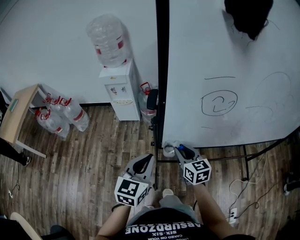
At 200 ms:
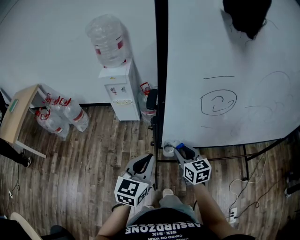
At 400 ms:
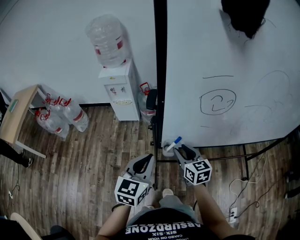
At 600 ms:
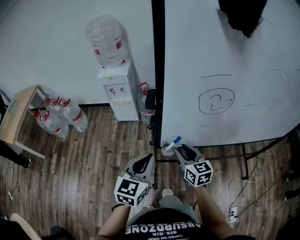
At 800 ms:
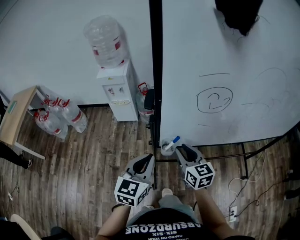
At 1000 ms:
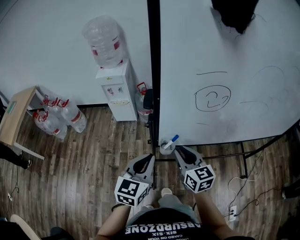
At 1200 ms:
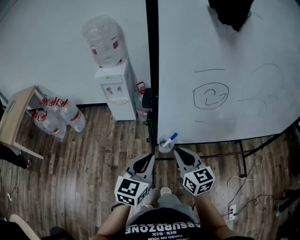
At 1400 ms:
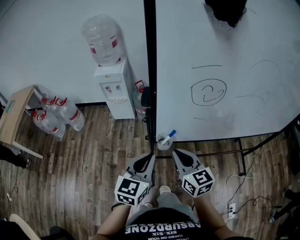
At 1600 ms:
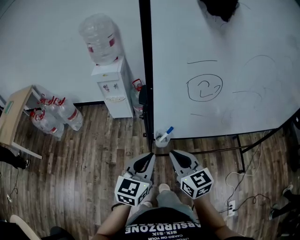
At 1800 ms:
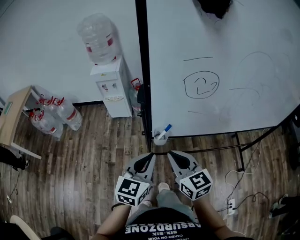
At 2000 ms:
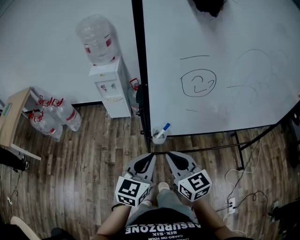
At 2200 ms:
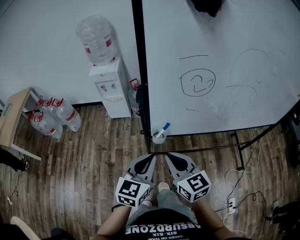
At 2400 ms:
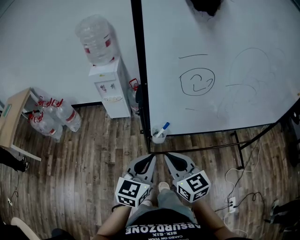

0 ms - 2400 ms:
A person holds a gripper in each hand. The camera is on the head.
0 ms - 1200 ms: The right gripper is displaced upward and backward by approximately 10 cm.
1200 ms - 2400 ms: Both grippers travel together backward, approximately 5 cm.

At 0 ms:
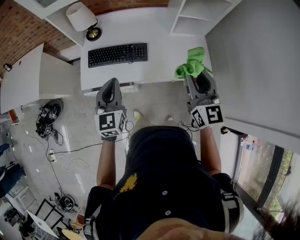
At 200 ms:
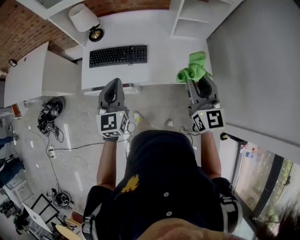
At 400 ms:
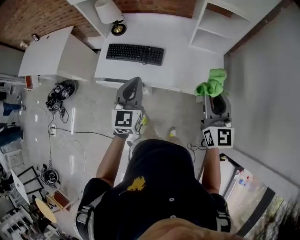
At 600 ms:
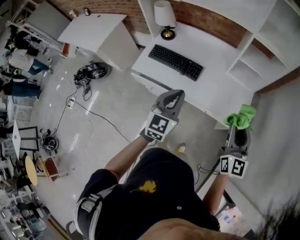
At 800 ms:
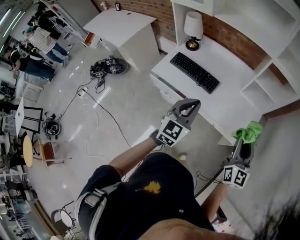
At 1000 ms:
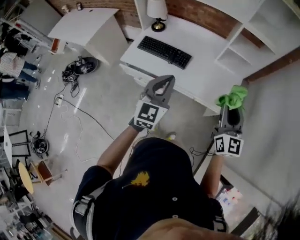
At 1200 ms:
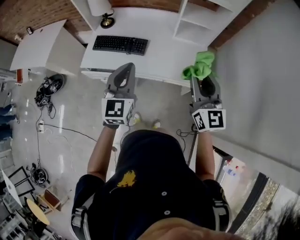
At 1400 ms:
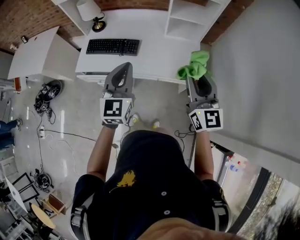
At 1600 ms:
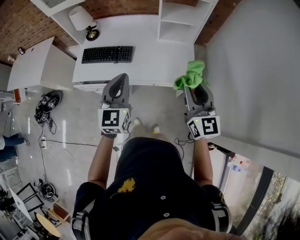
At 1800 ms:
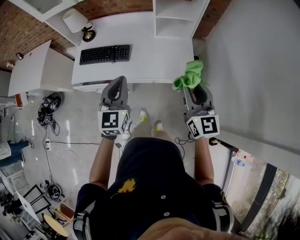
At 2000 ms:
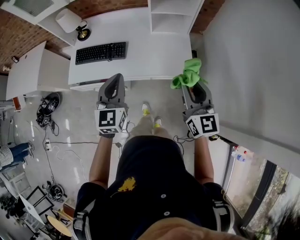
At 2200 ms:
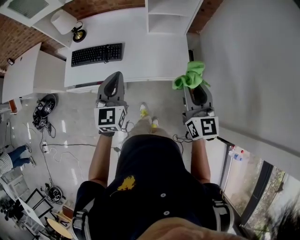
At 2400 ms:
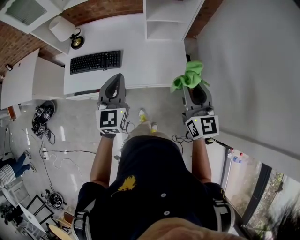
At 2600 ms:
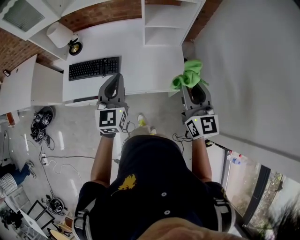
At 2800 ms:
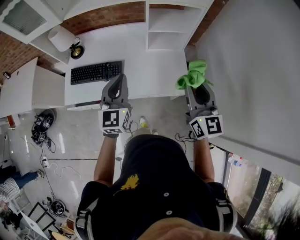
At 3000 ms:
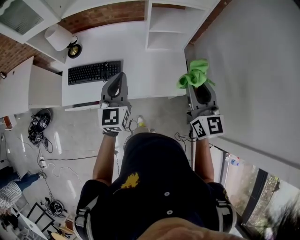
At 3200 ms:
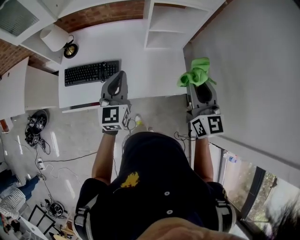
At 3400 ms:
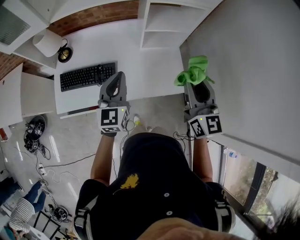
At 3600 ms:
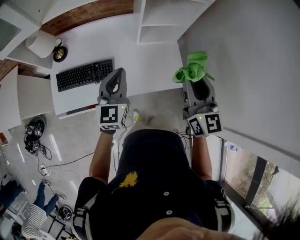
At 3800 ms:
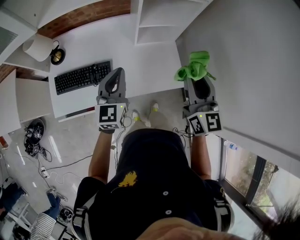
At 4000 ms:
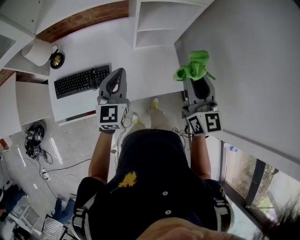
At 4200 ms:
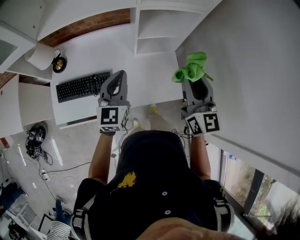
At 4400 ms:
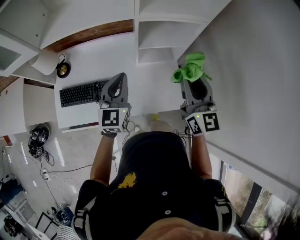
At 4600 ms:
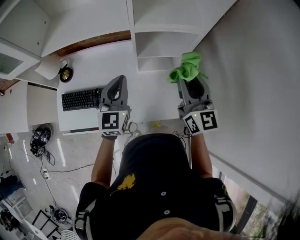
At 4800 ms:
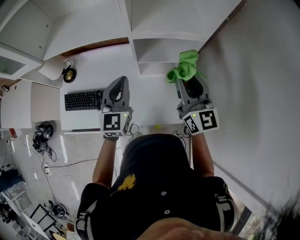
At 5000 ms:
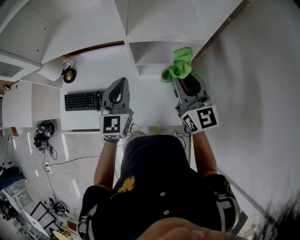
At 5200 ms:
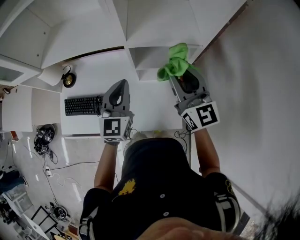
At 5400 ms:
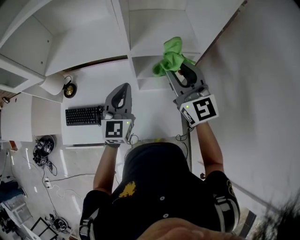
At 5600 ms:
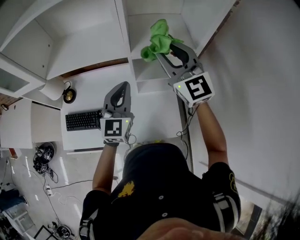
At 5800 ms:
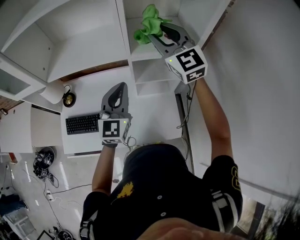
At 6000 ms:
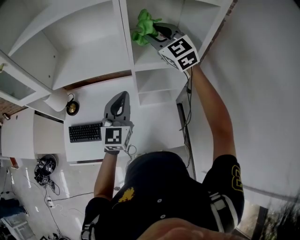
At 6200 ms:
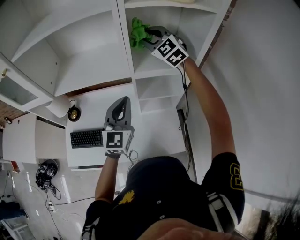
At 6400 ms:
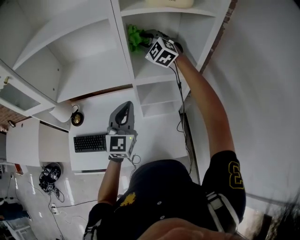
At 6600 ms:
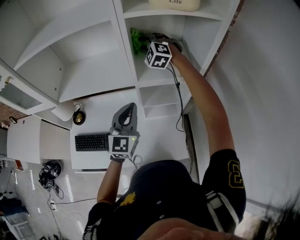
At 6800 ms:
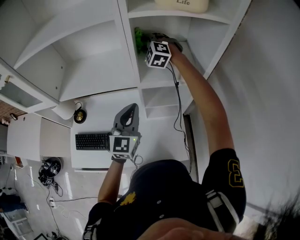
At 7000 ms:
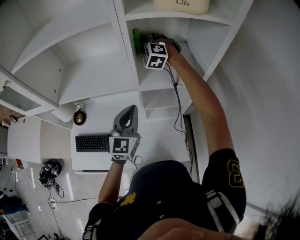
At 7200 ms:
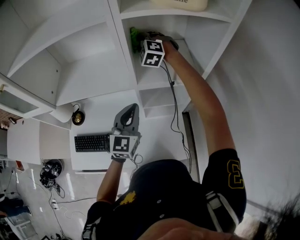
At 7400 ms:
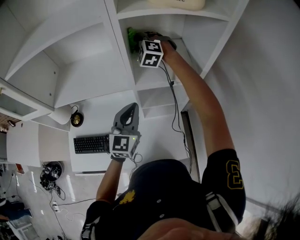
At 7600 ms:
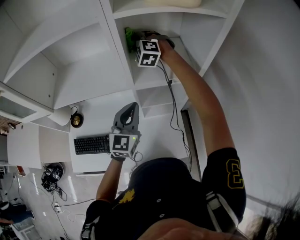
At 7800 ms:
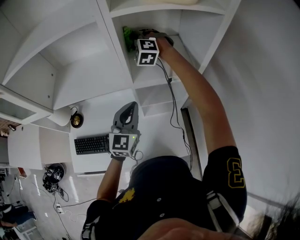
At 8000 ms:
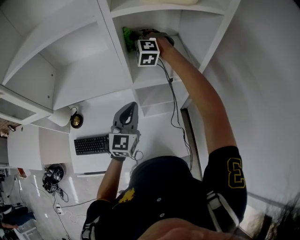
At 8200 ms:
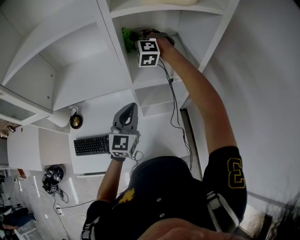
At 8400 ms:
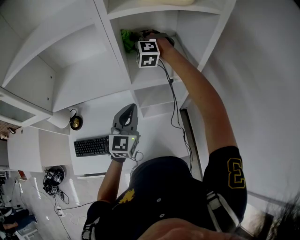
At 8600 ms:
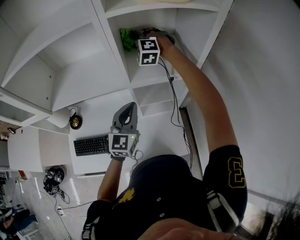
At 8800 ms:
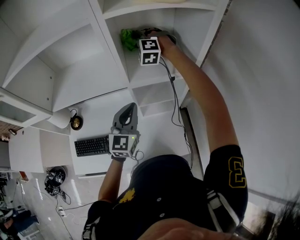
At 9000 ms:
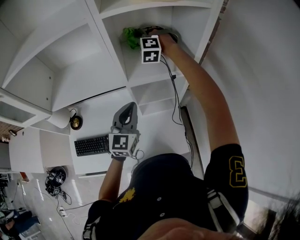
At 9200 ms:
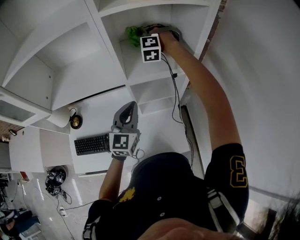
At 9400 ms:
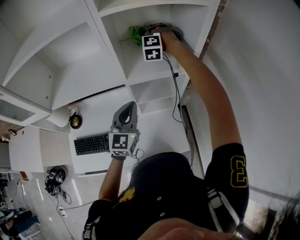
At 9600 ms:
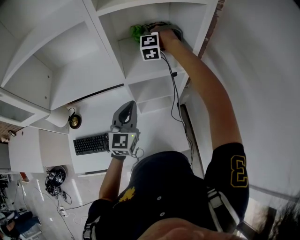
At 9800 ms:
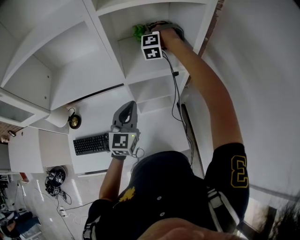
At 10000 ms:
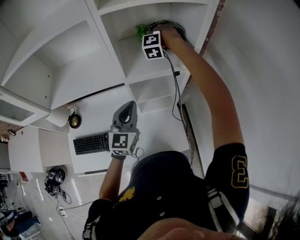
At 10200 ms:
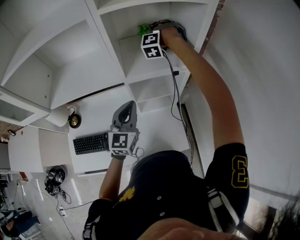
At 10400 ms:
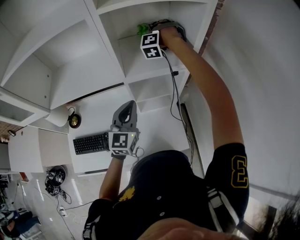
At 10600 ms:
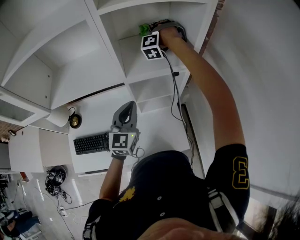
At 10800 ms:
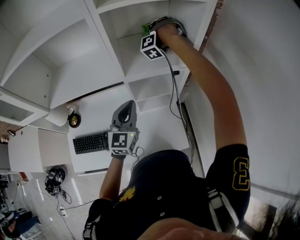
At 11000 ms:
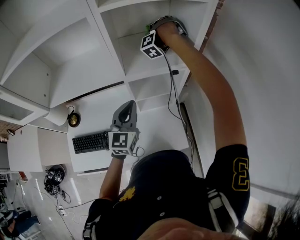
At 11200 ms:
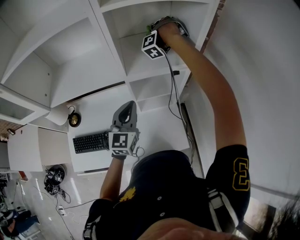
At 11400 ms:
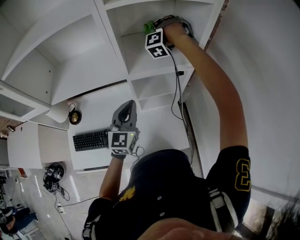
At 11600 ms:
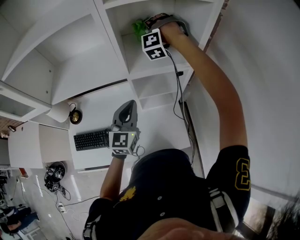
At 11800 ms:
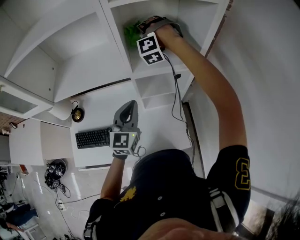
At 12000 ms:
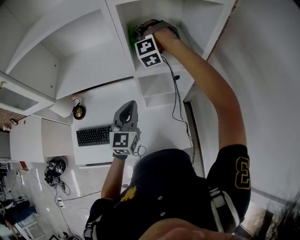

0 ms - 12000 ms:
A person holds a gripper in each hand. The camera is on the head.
0 ms - 1600 ms: Both grippers move to the right and backward, some 25 cm.
1600 ms - 3000 ms: Both grippers move forward, some 15 cm.
3000 ms - 4400 ms: Both grippers travel together forward, some 15 cm.
4400 ms - 6000 ms: The right gripper goes roughly 30 cm forward and upward, and changes its angle by roughly 40 degrees, while the left gripper moves upward and forward, approximately 10 cm.
6000 ms - 7600 ms: The left gripper travels forward by approximately 5 cm, while the right gripper moves forward and downward, about 20 cm, and changes its angle by about 40 degrees.
7600 ms - 9000 ms: The right gripper goes roughly 5 cm to the right.
9000 ms - 10400 ms: The right gripper moves to the right, roughly 10 cm, and turns by some 30 degrees.
10400 ms - 12000 ms: The right gripper moves backward and to the left, about 15 cm, and rotates approximately 20 degrees.

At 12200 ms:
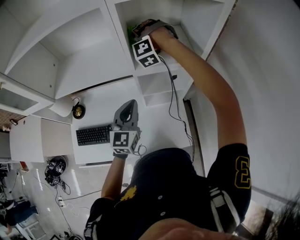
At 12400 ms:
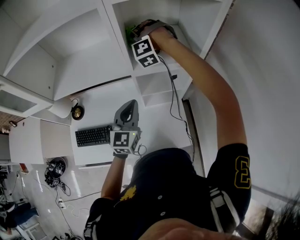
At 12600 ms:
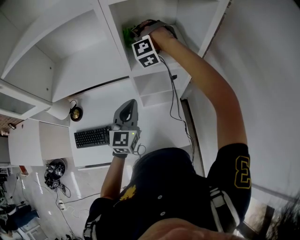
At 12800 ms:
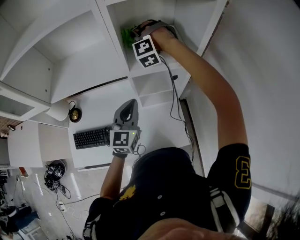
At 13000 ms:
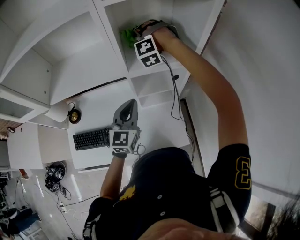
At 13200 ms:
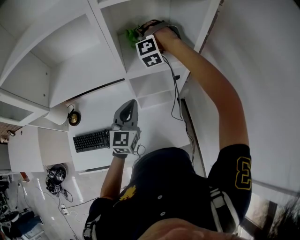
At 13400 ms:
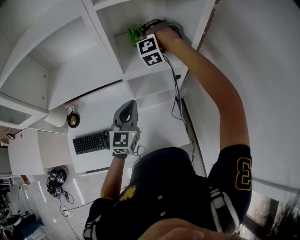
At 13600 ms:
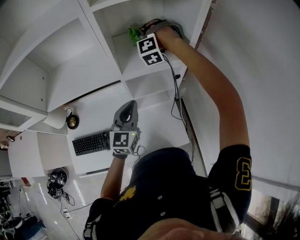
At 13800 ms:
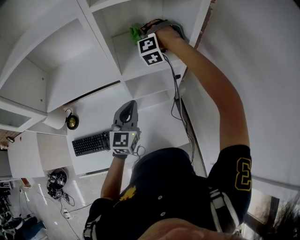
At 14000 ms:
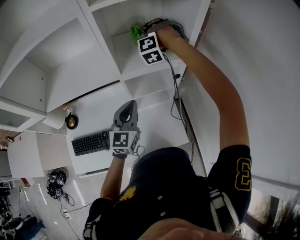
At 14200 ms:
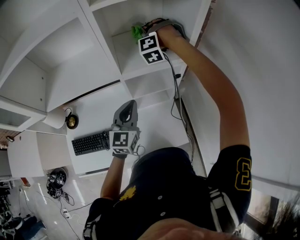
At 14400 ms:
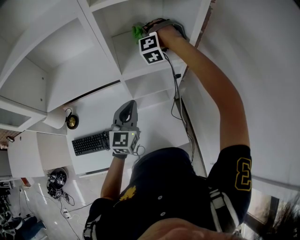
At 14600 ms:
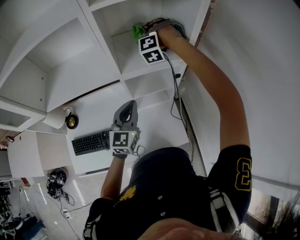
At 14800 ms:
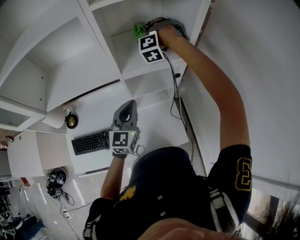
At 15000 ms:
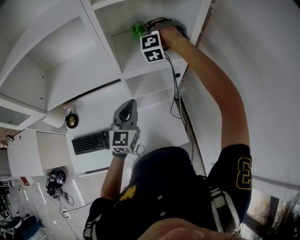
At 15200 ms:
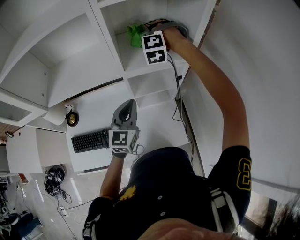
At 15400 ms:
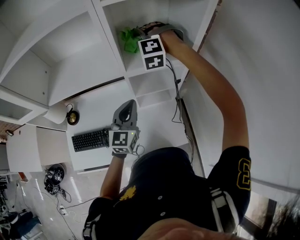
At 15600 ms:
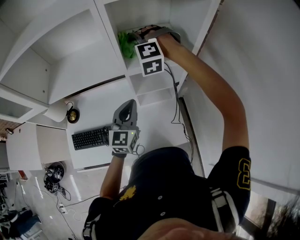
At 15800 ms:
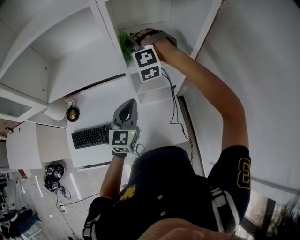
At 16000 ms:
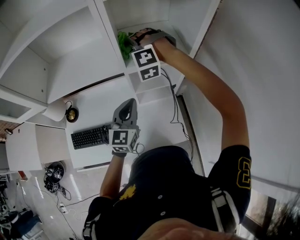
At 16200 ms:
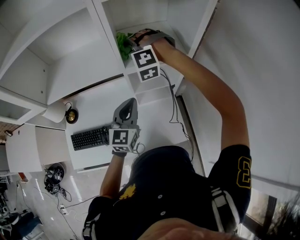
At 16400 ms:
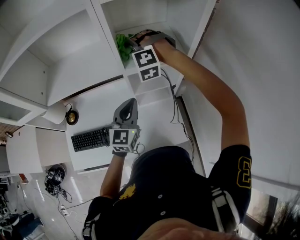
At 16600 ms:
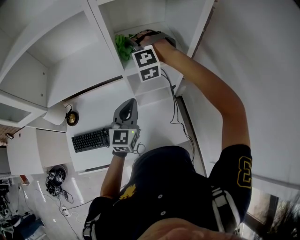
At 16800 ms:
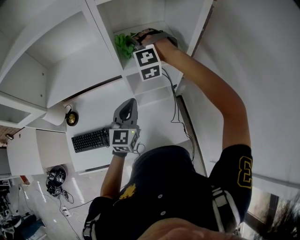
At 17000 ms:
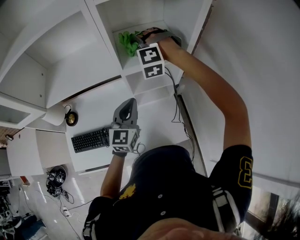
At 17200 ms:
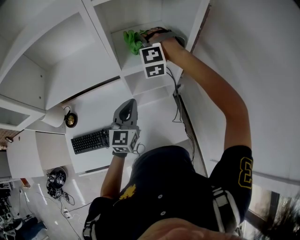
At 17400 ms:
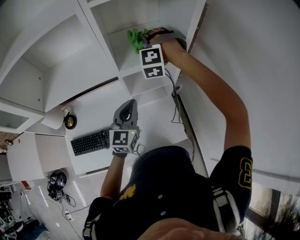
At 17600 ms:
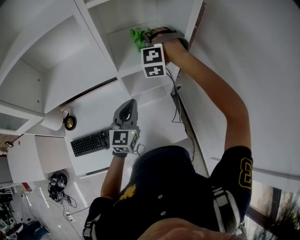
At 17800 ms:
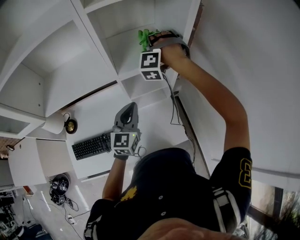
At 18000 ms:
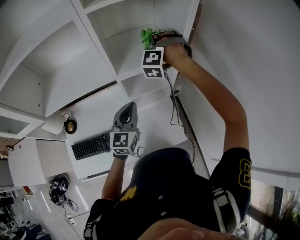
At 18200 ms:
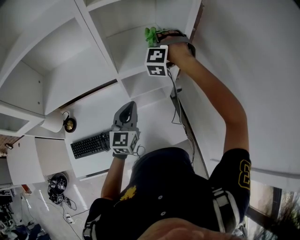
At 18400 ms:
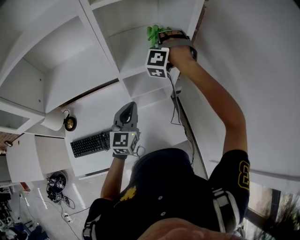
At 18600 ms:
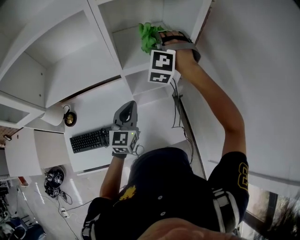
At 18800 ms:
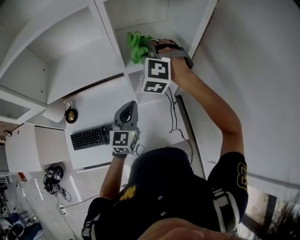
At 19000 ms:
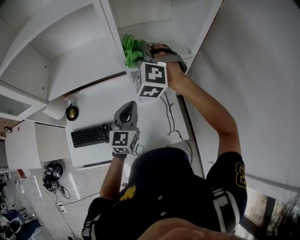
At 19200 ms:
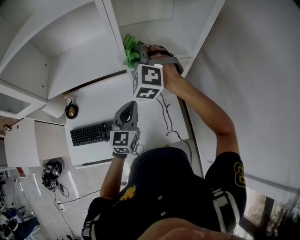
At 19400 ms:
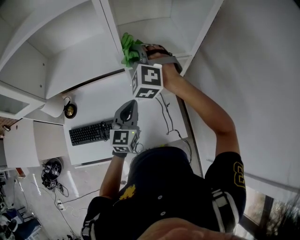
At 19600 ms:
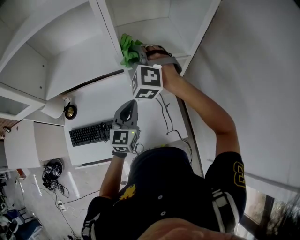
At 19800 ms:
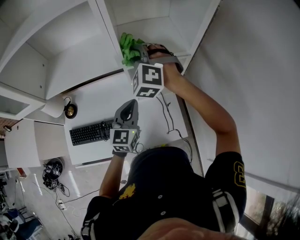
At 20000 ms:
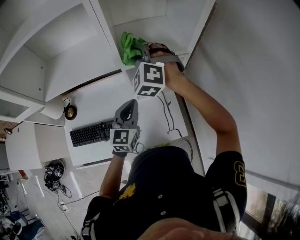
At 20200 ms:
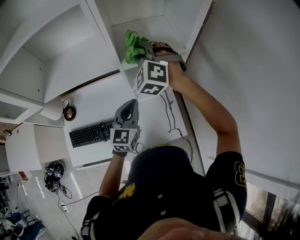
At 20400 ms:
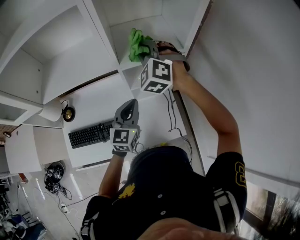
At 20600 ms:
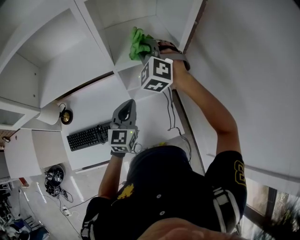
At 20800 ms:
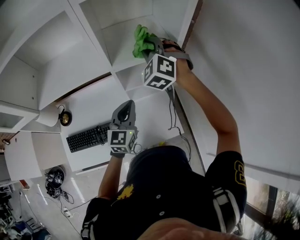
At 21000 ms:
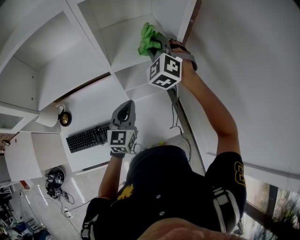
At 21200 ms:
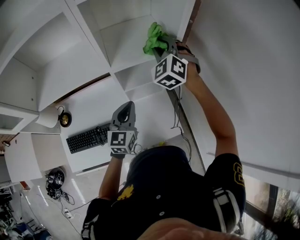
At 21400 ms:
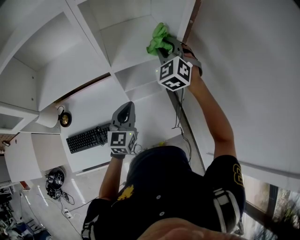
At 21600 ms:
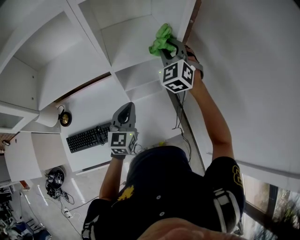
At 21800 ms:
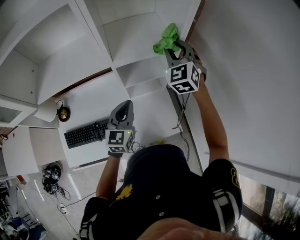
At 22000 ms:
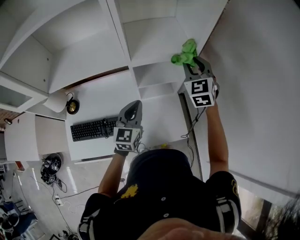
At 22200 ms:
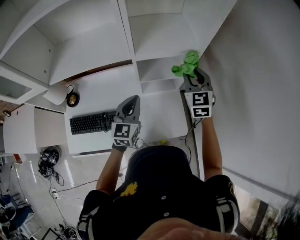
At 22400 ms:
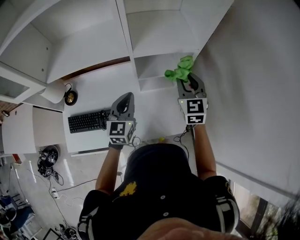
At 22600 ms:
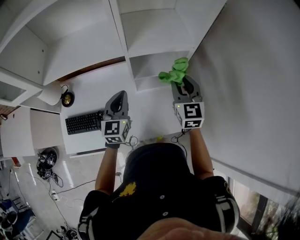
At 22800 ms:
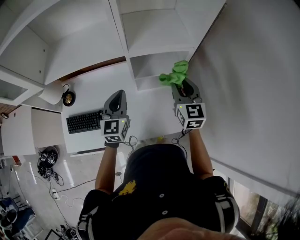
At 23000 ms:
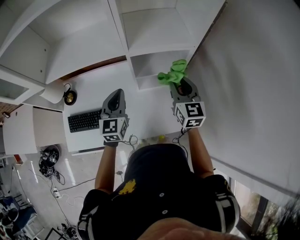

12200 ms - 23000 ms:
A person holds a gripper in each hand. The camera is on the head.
12200 ms - 13800 ms: The right gripper goes roughly 10 cm to the right.
13800 ms - 15200 ms: The grippers move only a little.
15200 ms - 16800 ms: The right gripper shifts approximately 5 cm backward.
16800 ms - 18400 ms: The right gripper heads to the right and forward, covering about 15 cm, and changes its angle by roughly 40 degrees.
18400 ms - 20000 ms: The right gripper heads to the left and backward, covering about 15 cm, and swivels some 40 degrees.
20000 ms - 21400 ms: The right gripper shifts about 15 cm to the right, and changes its angle by approximately 20 degrees.
21400 ms - 23000 ms: The right gripper shifts about 15 cm backward and downward, and rolls clockwise, seen from behind, by some 50 degrees. The left gripper moves to the left, about 10 cm.
